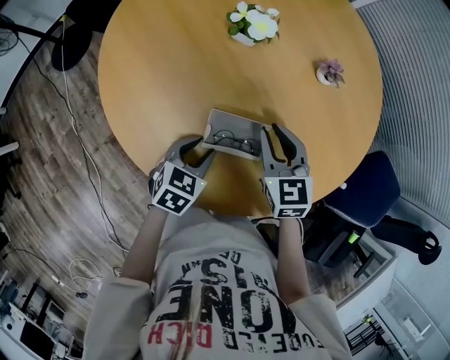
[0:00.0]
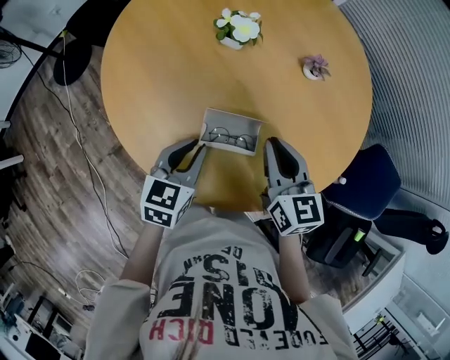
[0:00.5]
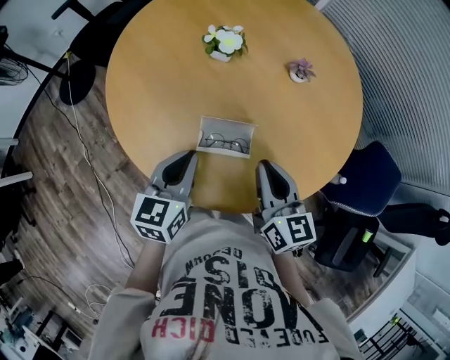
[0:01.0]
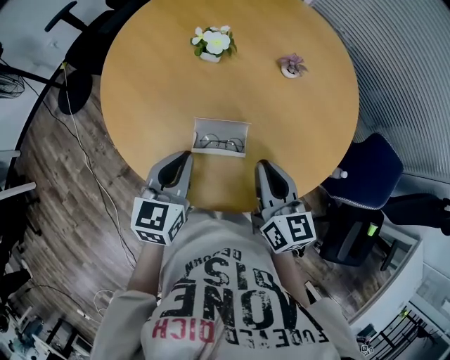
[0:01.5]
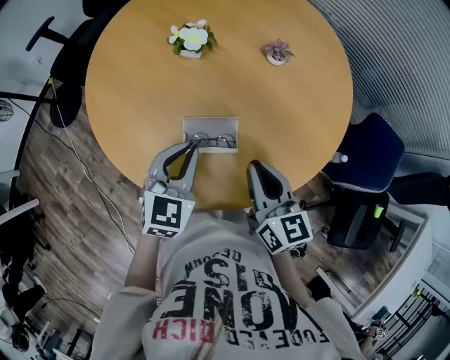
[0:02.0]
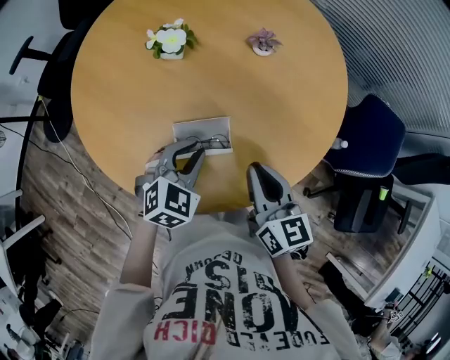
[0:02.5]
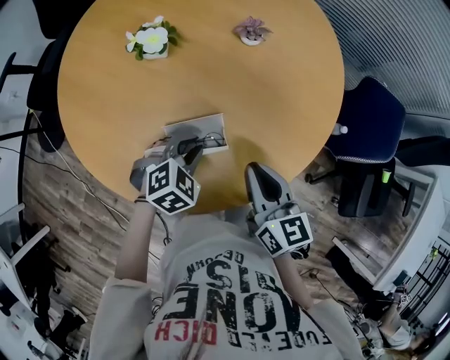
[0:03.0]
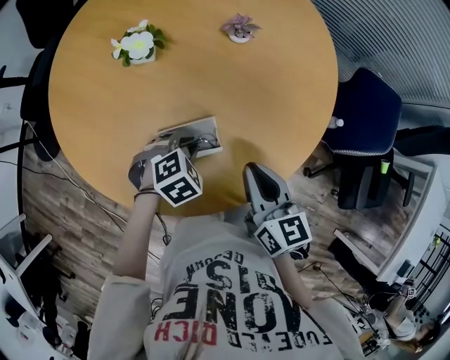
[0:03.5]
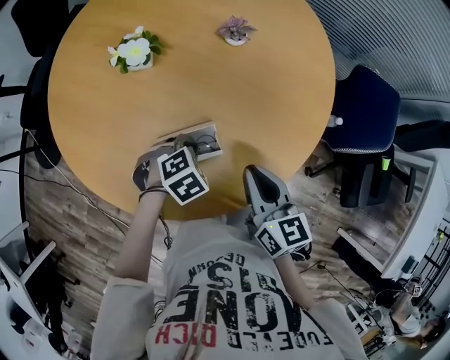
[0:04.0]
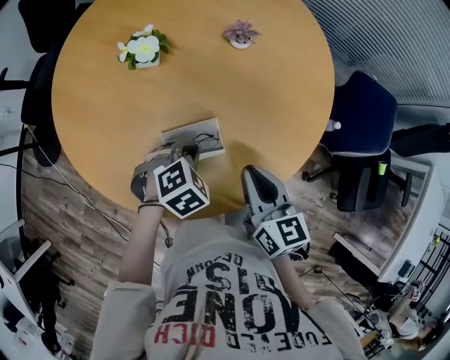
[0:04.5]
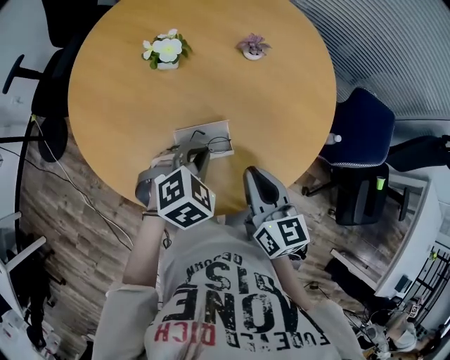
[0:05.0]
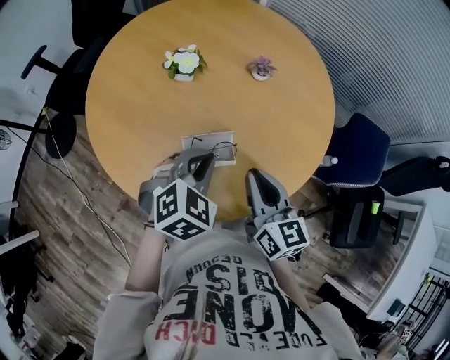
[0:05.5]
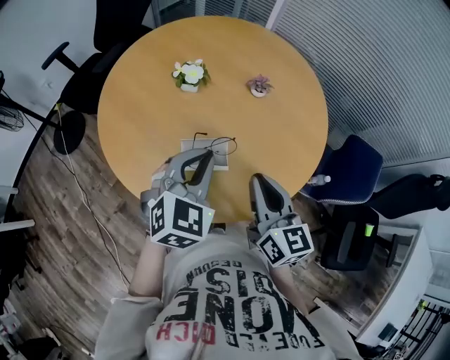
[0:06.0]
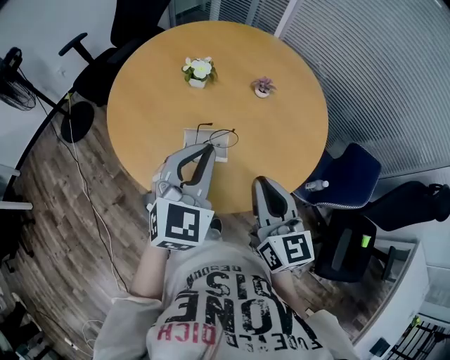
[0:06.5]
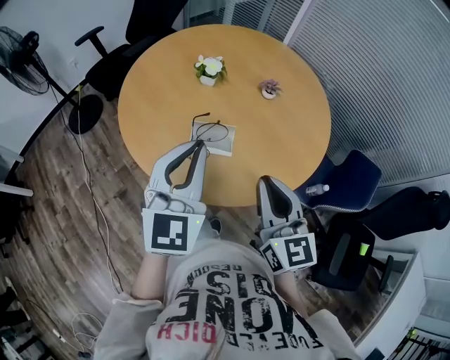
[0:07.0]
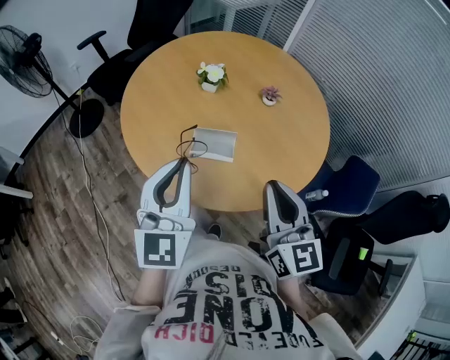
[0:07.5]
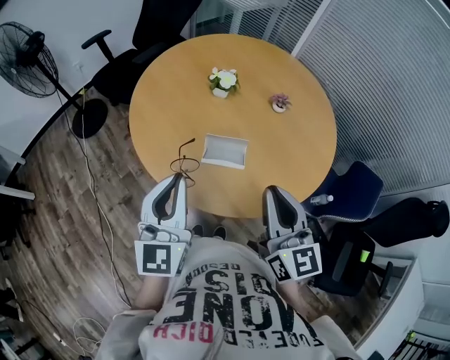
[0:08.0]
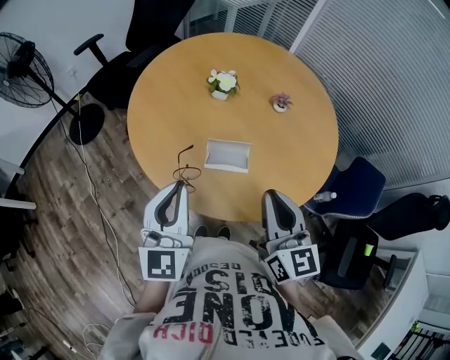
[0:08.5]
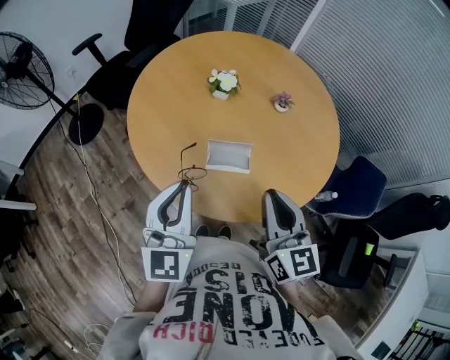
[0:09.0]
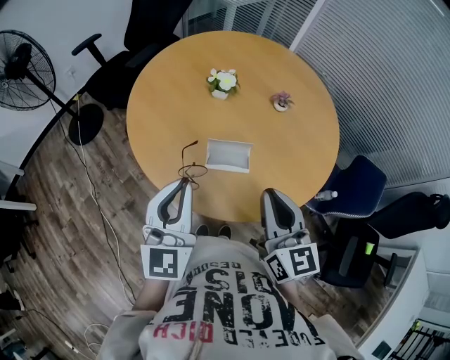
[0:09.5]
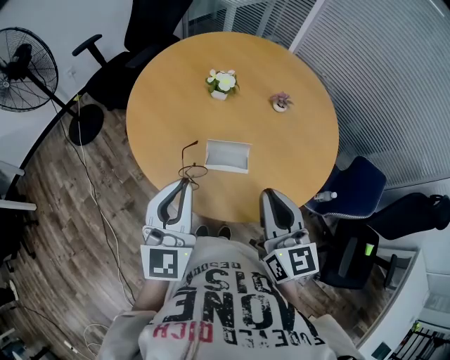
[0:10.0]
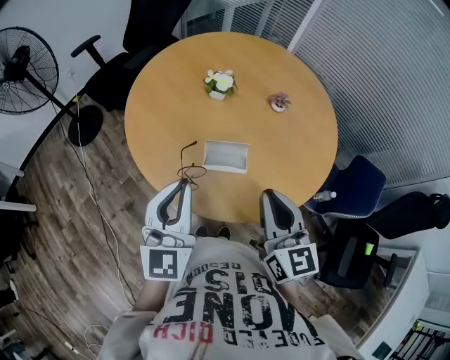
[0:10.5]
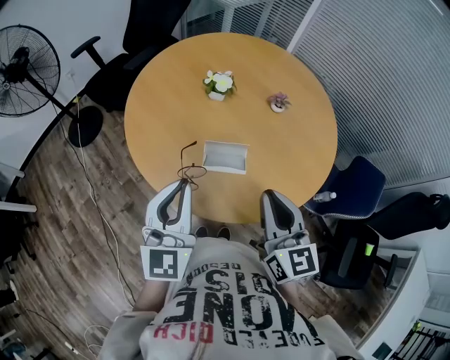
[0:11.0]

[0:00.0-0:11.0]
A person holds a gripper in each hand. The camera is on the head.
0:00.0 to 0:02.0: The left gripper moves upward, about 15 cm, swivels roughly 30 degrees, and closes its fingers; the right gripper moves backward, upward and to the right, roughly 15 cm, and turns by roughly 40 degrees.
0:02.0 to 0:03.5: The left gripper heads downward, covering some 15 cm, and points its fingers some 40 degrees further downward.
0:03.5 to 0:05.5: The left gripper travels upward by roughly 15 cm, and swivels some 30 degrees; the right gripper heads upward, covering about 5 cm.
0:05.5 to 0:07.5: Both grippers move upward and backward, roughly 20 cm. The left gripper tilts its fingers about 40 degrees upward. Meanwhile the right gripper turns by approximately 20 degrees.
0:07.5 to 0:09.0: The two grippers go about 5 cm to the left.
0:09.0 to 0:11.0: The grippers move only a little.

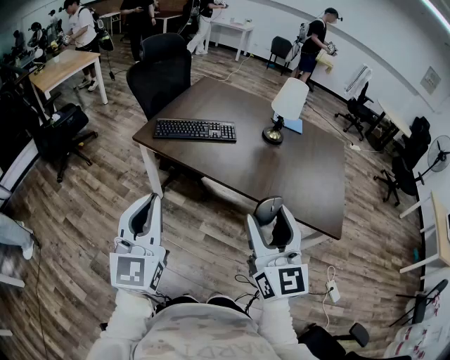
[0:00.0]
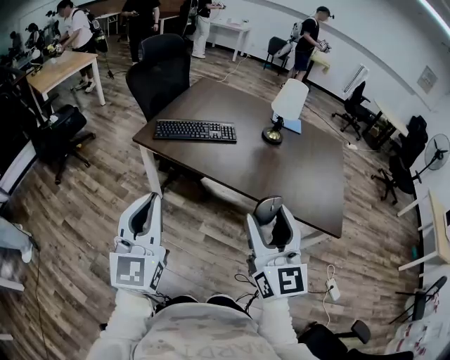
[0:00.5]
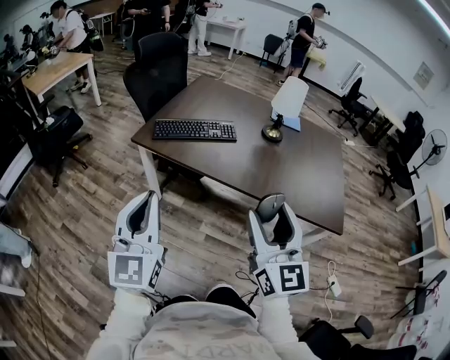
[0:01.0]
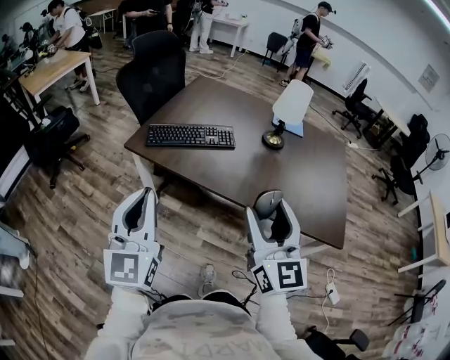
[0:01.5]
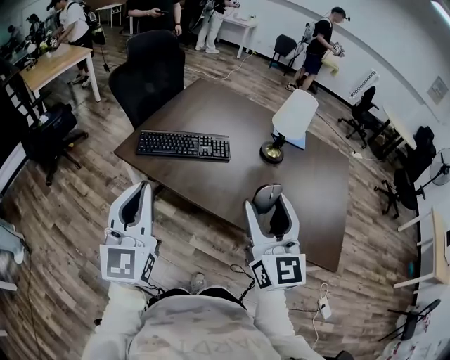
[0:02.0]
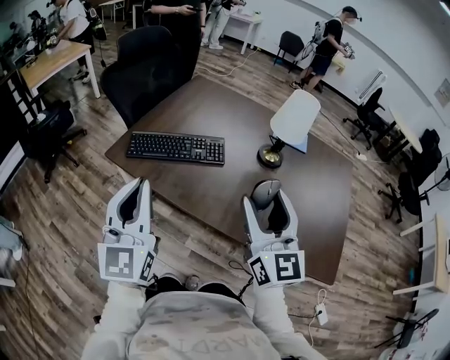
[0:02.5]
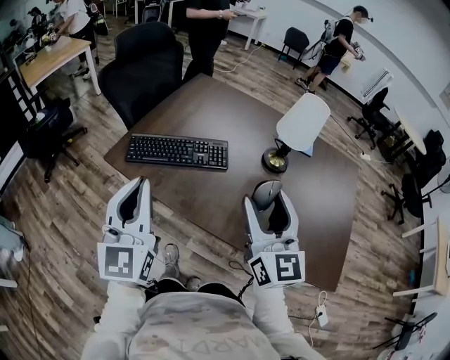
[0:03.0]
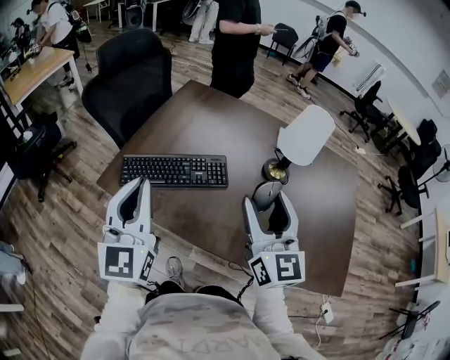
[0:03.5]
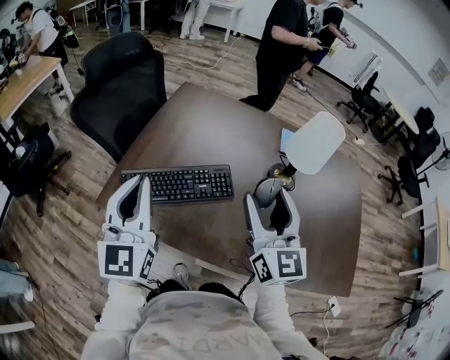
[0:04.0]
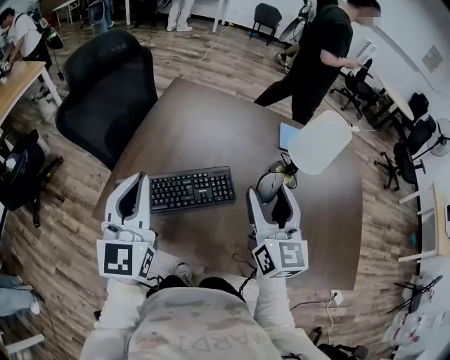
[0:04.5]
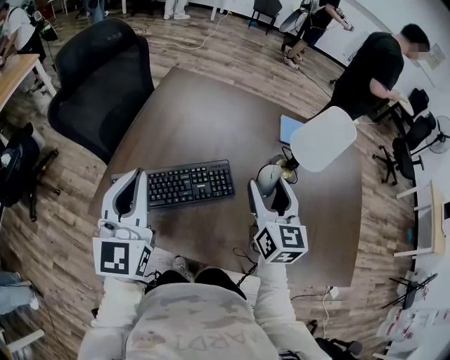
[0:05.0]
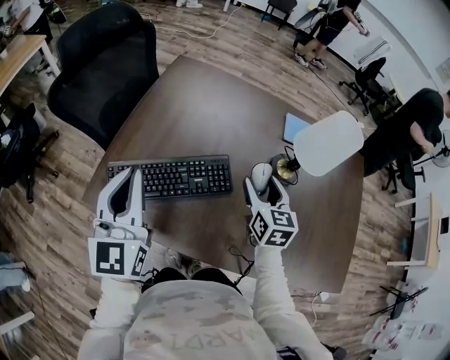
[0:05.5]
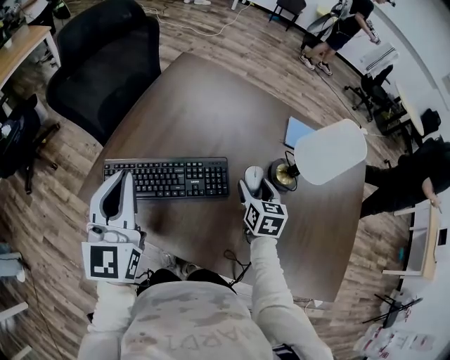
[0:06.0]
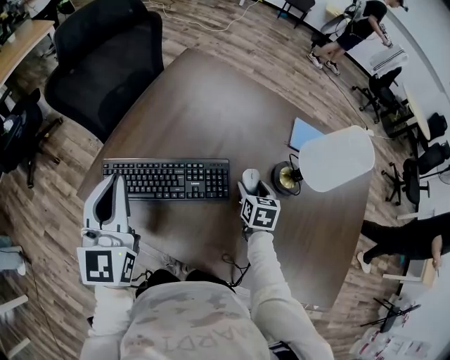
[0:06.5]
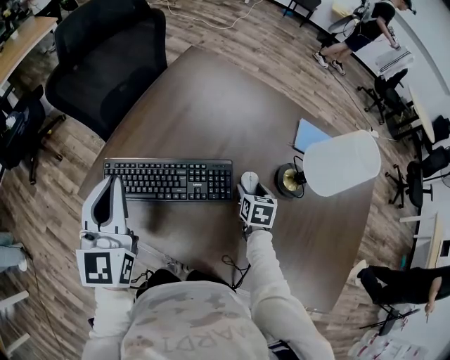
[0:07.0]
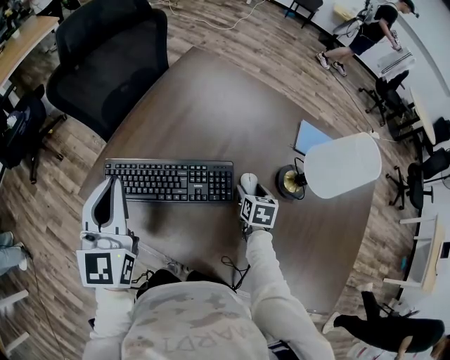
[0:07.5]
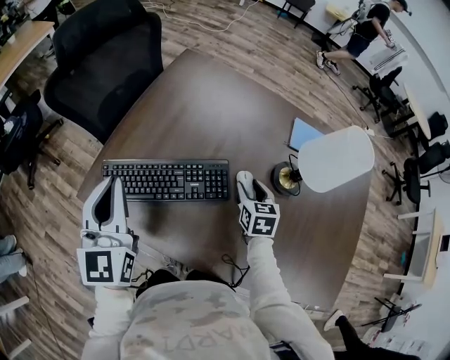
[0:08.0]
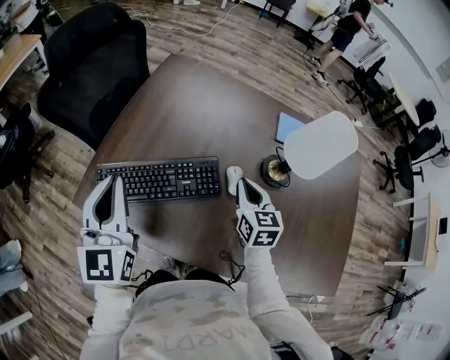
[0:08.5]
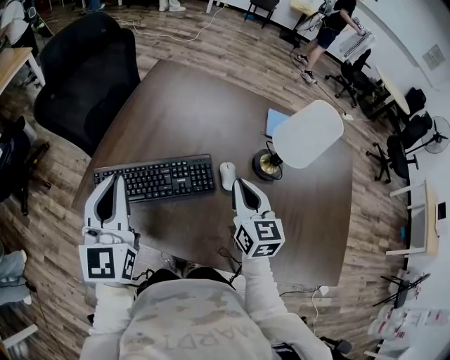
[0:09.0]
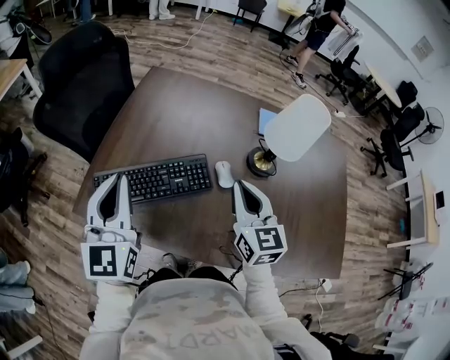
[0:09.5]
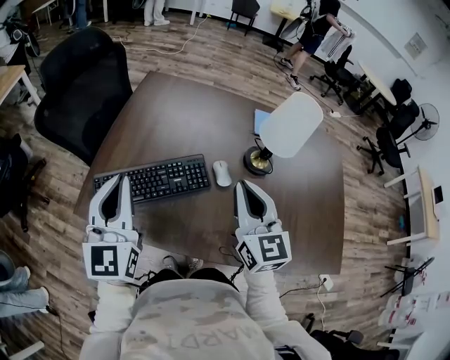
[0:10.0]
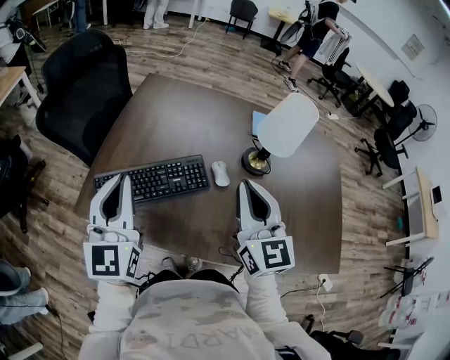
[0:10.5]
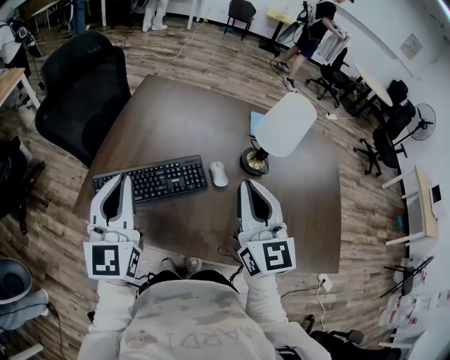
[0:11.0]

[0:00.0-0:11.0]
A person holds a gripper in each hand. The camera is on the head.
0:00.0 to 0:02.0: The two grippers go some 20 cm forward.
0:02.0 to 0:03.5: The two grippers go about 20 cm forward.
0:03.5 to 0:05.5: The right gripper goes approximately 25 cm forward and downward, and swivels roughly 30 degrees; the left gripper travels forward by about 15 cm.
0:05.5 to 0:07.5: The right gripper heads downward, covering roughly 20 cm, and turns by about 30 degrees.
0:07.5 to 0:09.0: The left gripper changes place by some 5 cm. Meanwhile the right gripper shifts roughly 20 cm upward, angles its fingers upward, by some 30 degrees, and closes up.
0:09.0 to 0:11.0: The left gripper changes place by approximately 5 cm. Meanwhile the right gripper shifts roughly 15 cm upward and backward, and changes its angle by approximately 20 degrees.

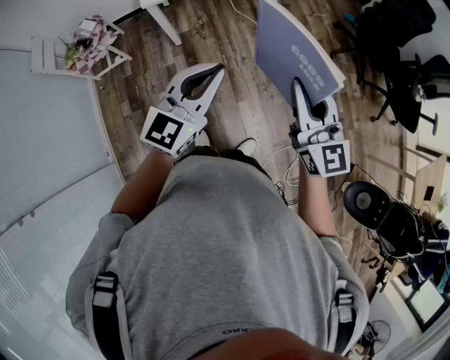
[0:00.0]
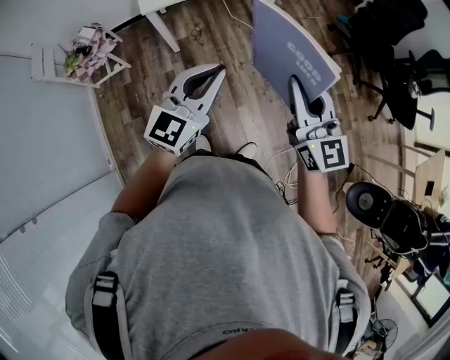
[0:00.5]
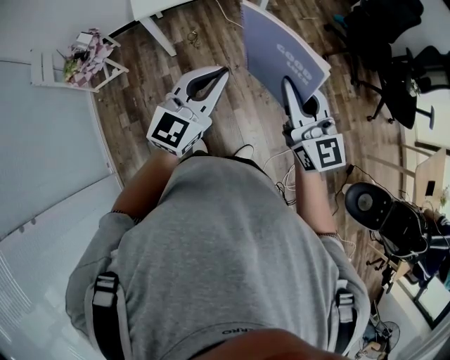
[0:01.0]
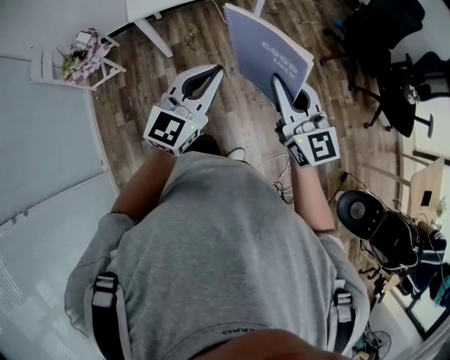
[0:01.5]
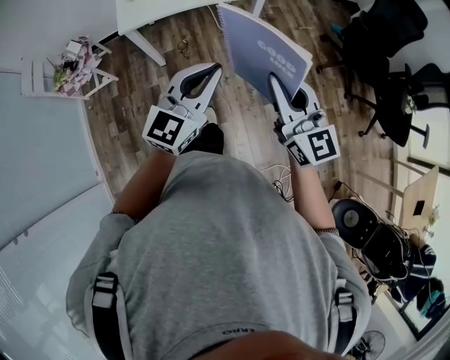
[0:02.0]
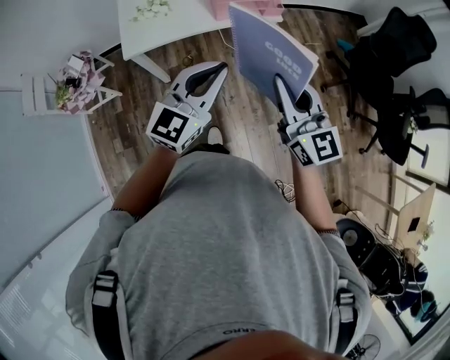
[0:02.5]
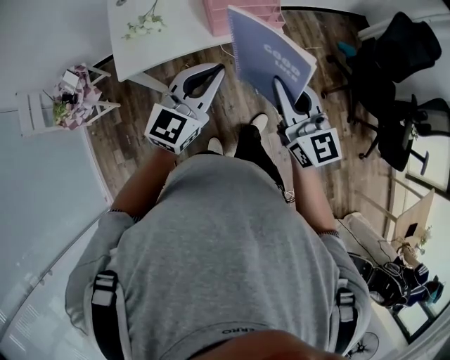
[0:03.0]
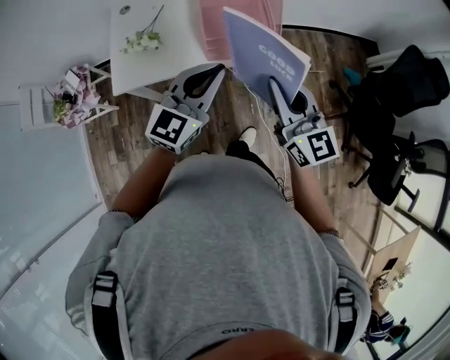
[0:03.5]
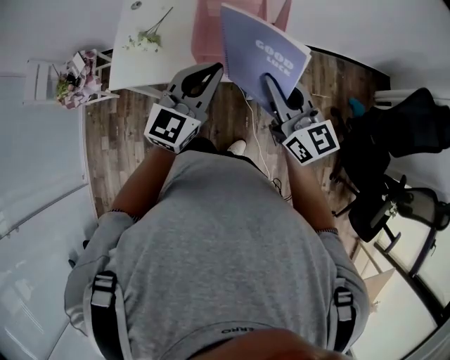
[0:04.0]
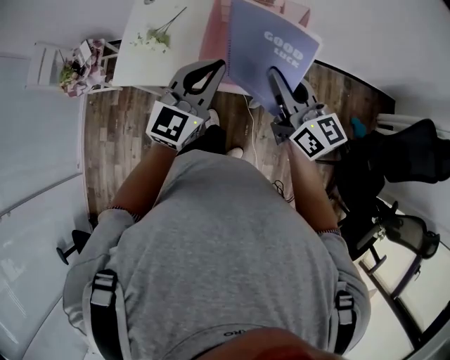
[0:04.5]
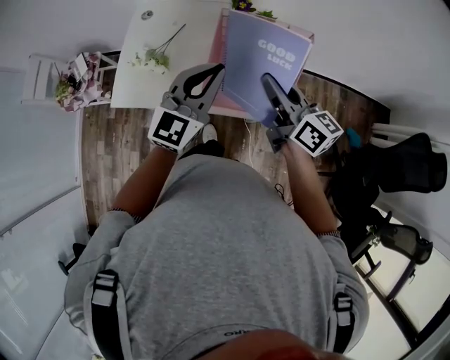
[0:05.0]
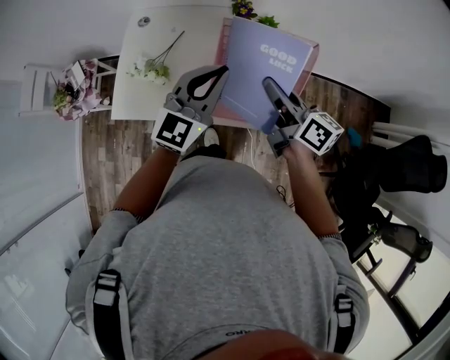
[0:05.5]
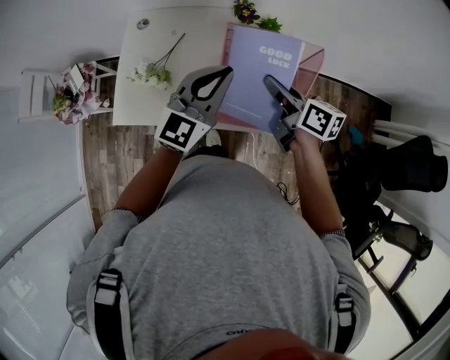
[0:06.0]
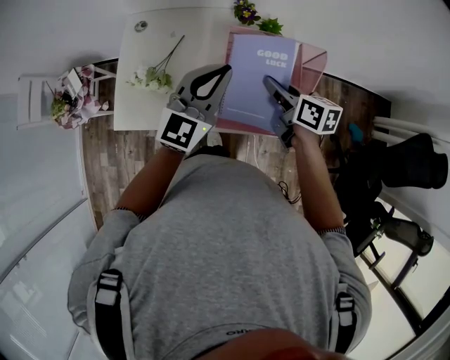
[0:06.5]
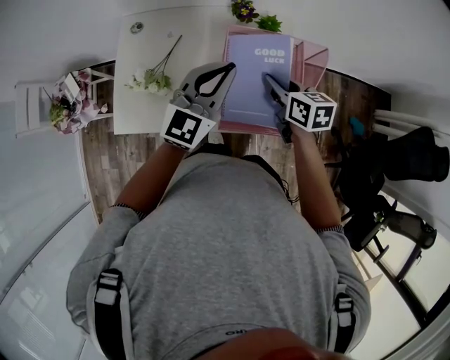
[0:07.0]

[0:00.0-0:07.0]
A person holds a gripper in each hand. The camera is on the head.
0:00.0 to 0:02.0: The left gripper is displaced forward and to the right by approximately 15 cm, while the right gripper moves forward, approximately 10 cm.
0:02.0 to 0:03.5: The grippers both shift forward by approximately 40 cm.
0:03.5 to 0:05.0: Both grippers travel together forward, approximately 20 cm. The right gripper changes its angle by some 40 degrees.
0:05.0 to 0:07.0: The right gripper goes some 15 cm forward and downward, and points its fingers some 30 degrees further downward; the left gripper moves forward, some 10 cm.
